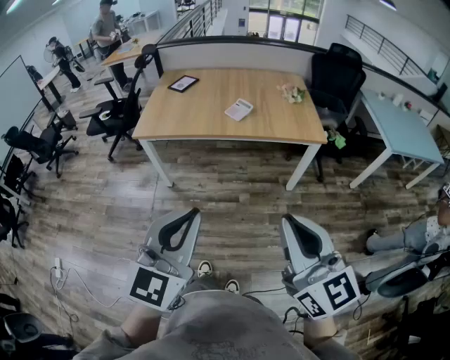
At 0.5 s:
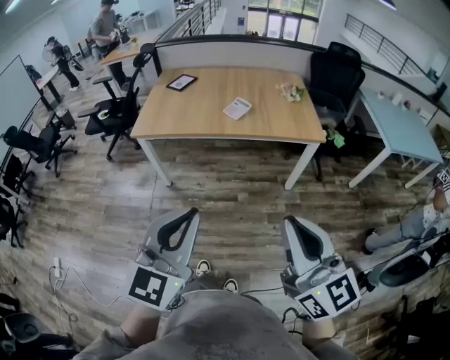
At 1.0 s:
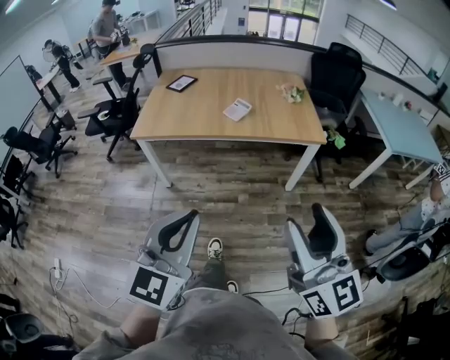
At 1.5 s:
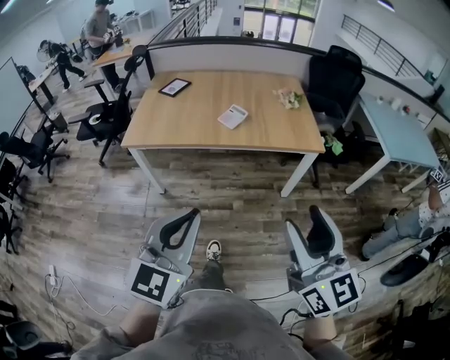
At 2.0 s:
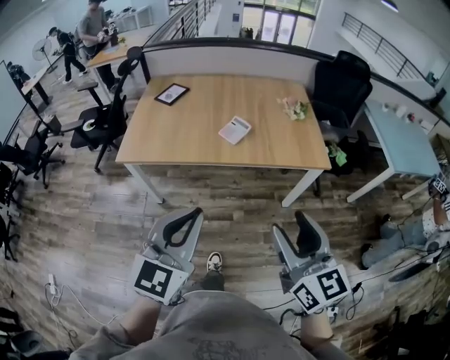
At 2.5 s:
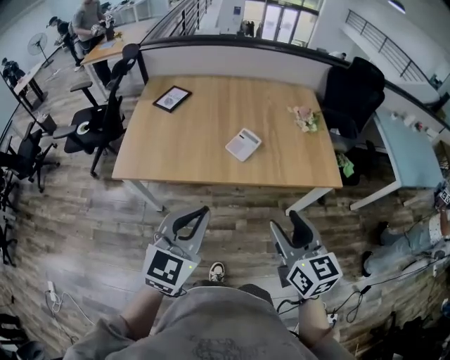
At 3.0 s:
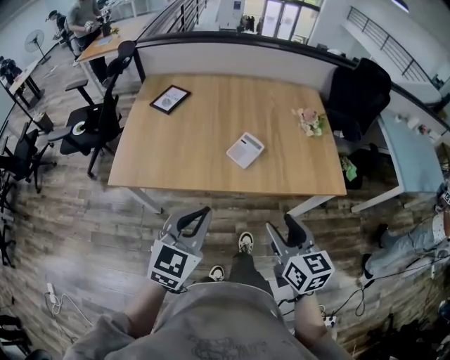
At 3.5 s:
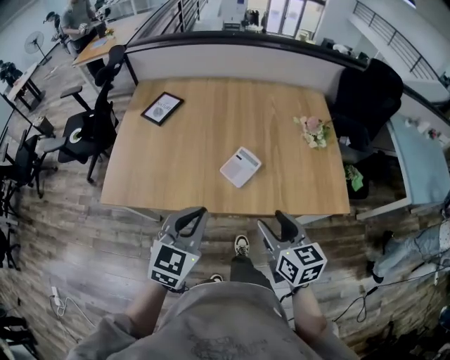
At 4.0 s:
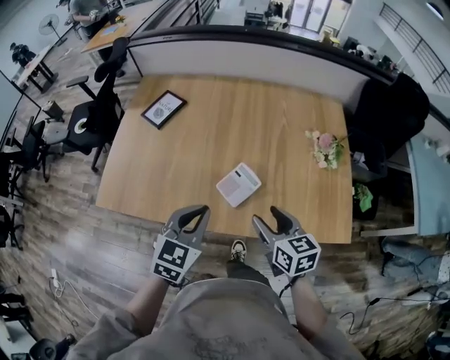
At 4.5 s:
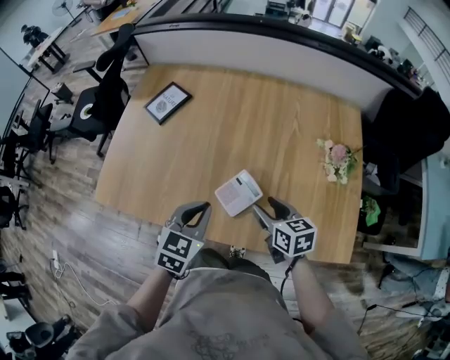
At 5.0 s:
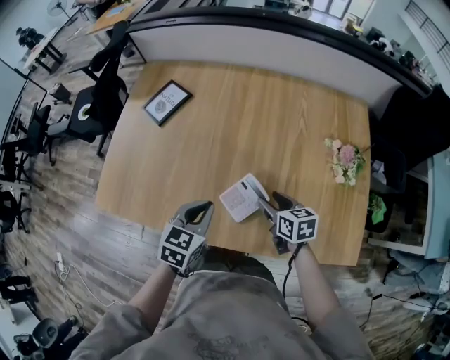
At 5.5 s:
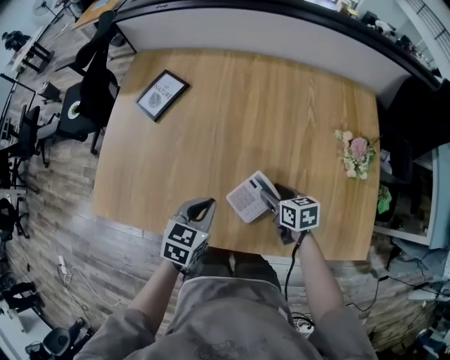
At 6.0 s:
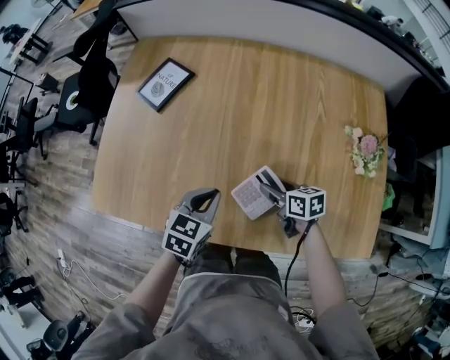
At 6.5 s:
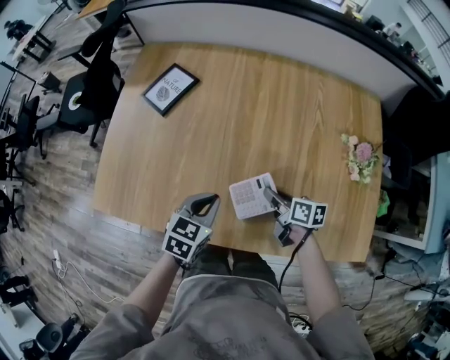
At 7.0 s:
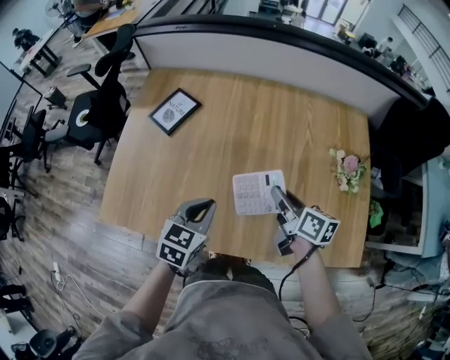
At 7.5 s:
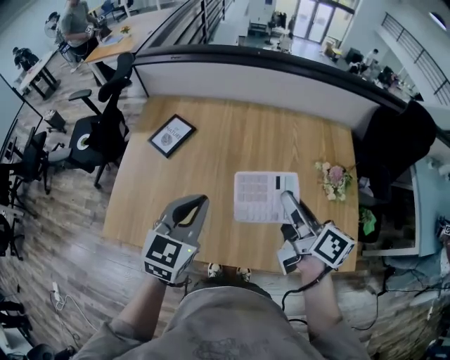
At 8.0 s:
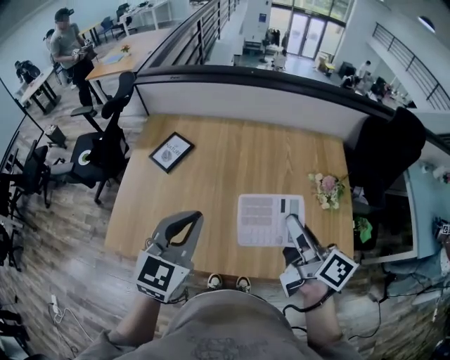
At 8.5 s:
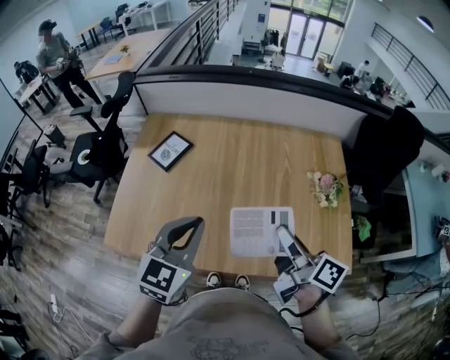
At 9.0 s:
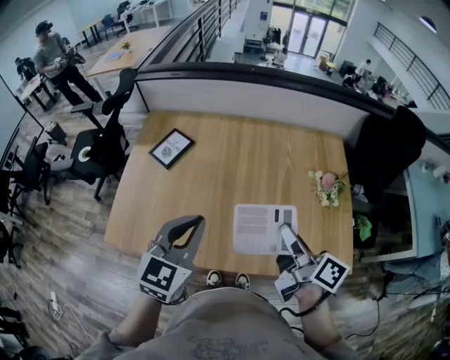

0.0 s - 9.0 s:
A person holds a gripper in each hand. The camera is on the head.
0.0 s - 2.0 s: The two grippers go roughly 20 cm forward. The right gripper opens its fingers.
2.0 s - 4.5 s: Both grippers are carried forward, about 50 cm. The grippers both shift downward by roughly 25 cm. The right gripper changes its angle by roughly 40 degrees, while the left gripper swivels roughly 30 degrees.
4.5 s - 7.0 s: The left gripper goes roughly 10 cm forward and to the left, and moves some 10 cm downward and comes back. Meanwhile the right gripper goes some 10 cm forward, goes downward and returns, some 15 cm each way, rotates about 30 degrees, and closes its fingers.
7.0 s - 9.0 s: The left gripper goes some 20 cm upward, and turns by roughly 20 degrees, while the right gripper moves upward and backward, approximately 20 cm, and changes its angle by some 20 degrees.

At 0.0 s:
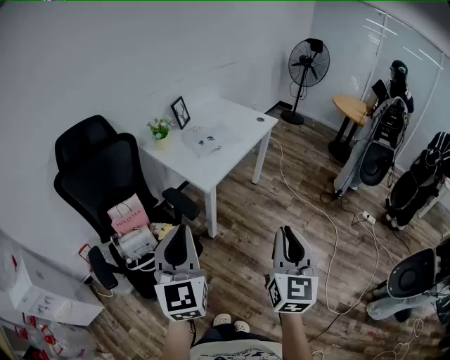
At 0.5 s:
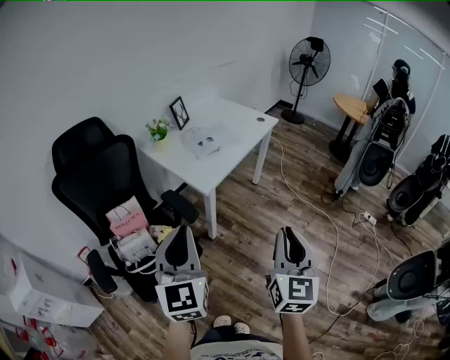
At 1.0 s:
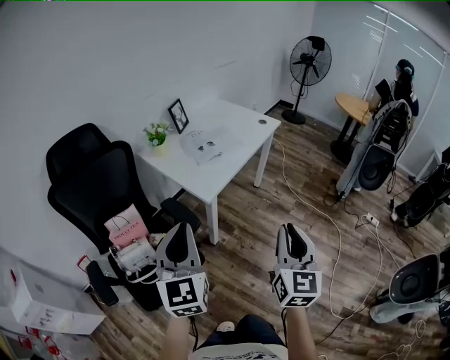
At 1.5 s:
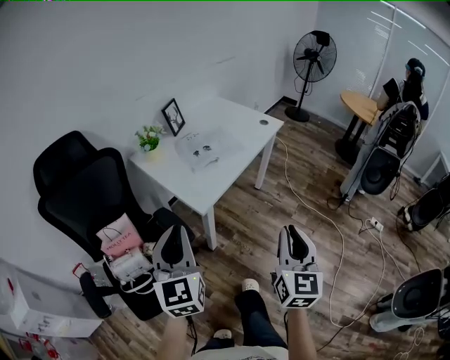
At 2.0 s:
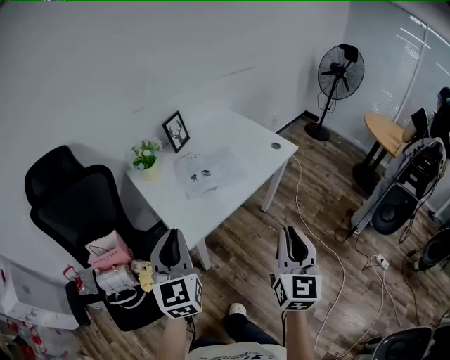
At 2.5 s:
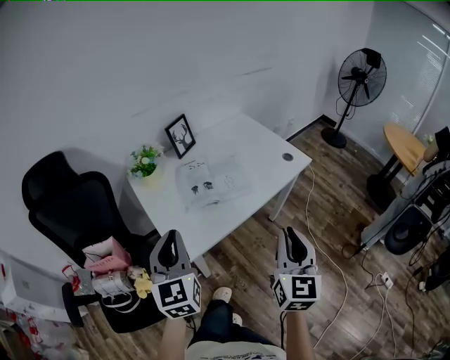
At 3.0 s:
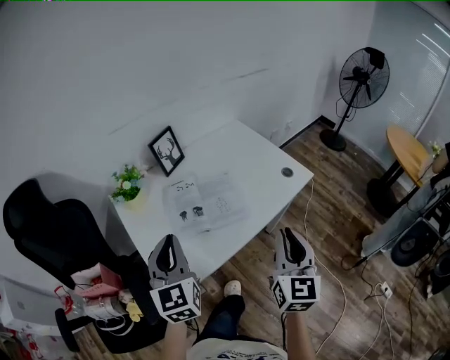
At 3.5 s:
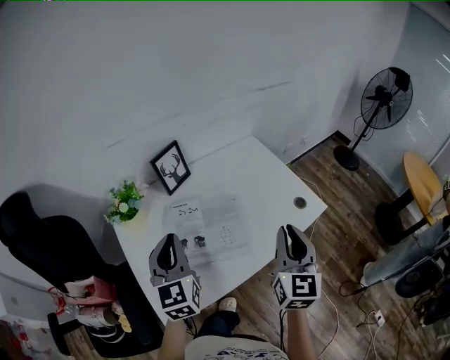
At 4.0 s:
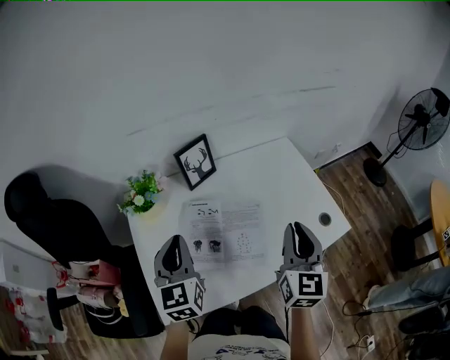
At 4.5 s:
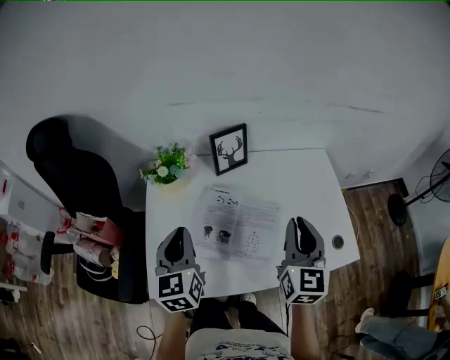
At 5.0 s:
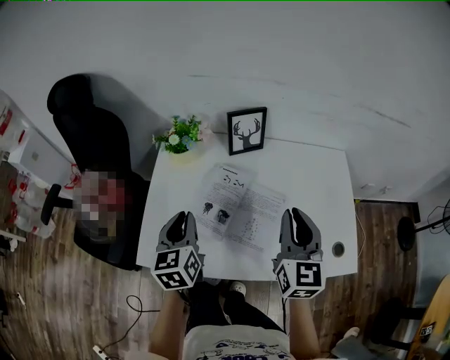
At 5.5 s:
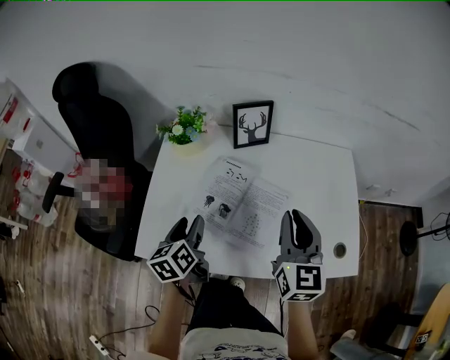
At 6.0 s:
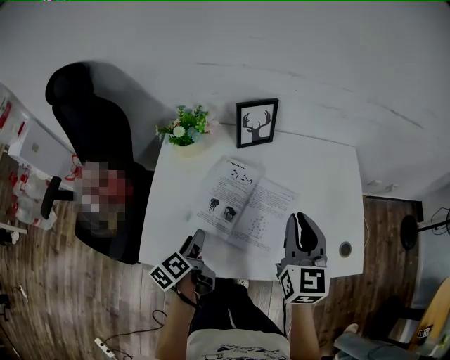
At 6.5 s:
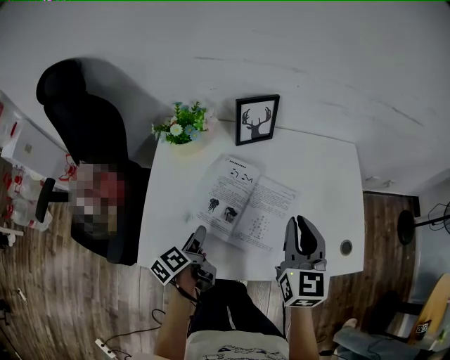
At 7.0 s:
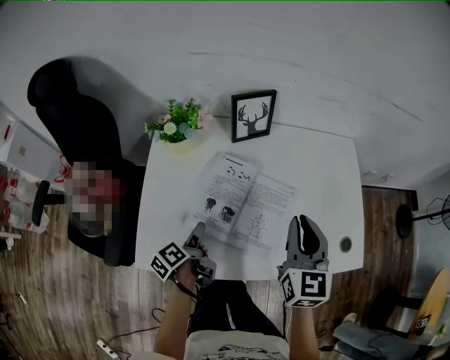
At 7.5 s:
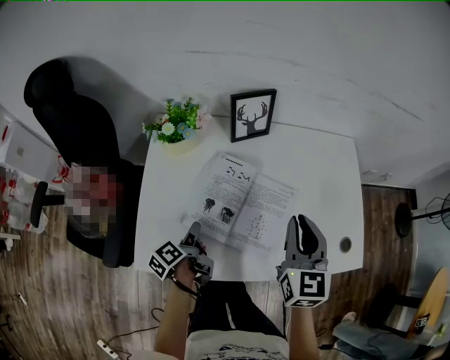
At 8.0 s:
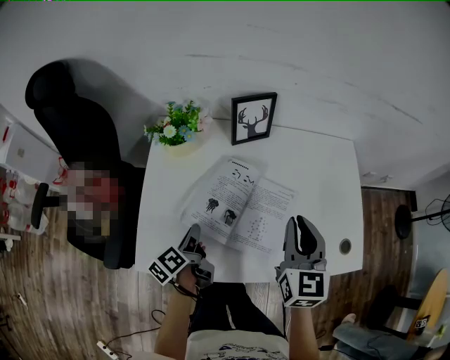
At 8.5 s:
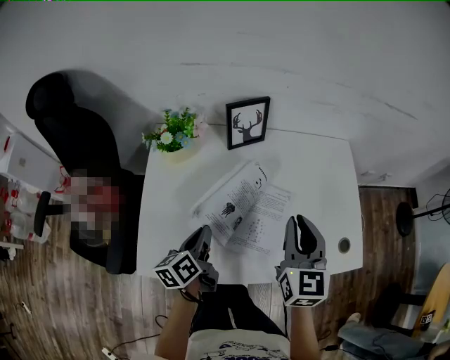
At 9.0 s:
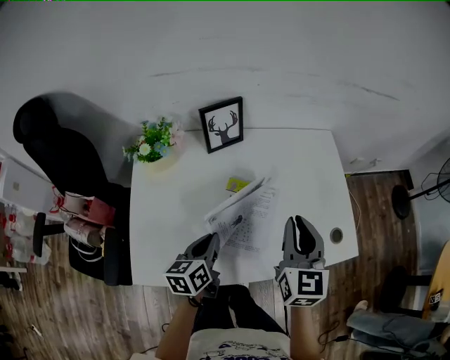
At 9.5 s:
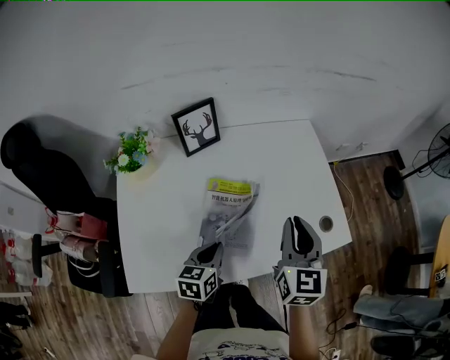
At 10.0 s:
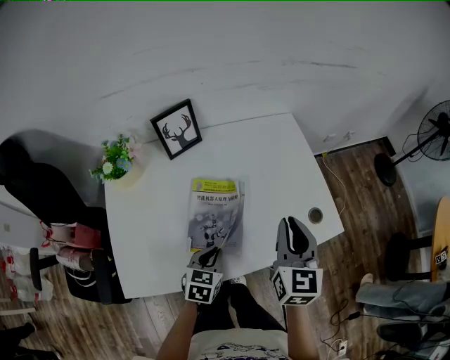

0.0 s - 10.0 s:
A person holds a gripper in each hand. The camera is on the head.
0.0 s - 2.0 s: Both grippers travel together forward, some 35 cm.
2.0 s - 4.0 s: The grippers both shift forward by about 50 cm. The right gripper swivels approximately 20 degrees. Meanwhile the left gripper rotates roughly 20 degrees.
4.0 s - 6.0 s: The right gripper travels forward and downward by some 10 cm, and turns by roughly 30 degrees; the left gripper is displaced downward and backward by some 25 cm, rotates around the line of its fingers by roughly 60 degrees, counterclockwise from behind, and opens up.
6.0 s - 8.0 s: The left gripper changes place by about 5 cm, and closes.
8.0 s - 10.0 s: The right gripper ends up approximately 15 cm from where it was. The left gripper ends up about 20 cm from where it was, and rolls clockwise, seen from behind, by some 70 degrees.

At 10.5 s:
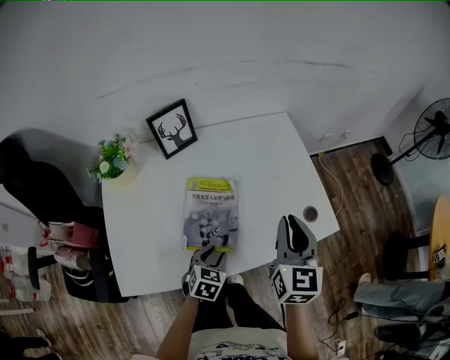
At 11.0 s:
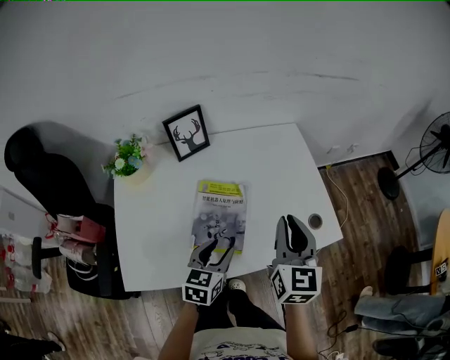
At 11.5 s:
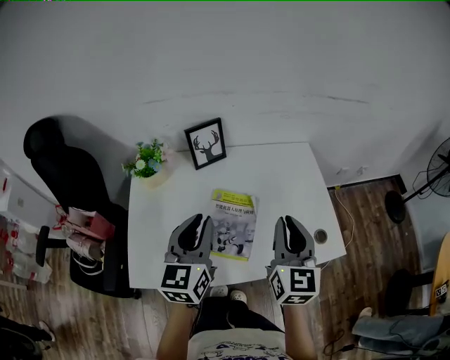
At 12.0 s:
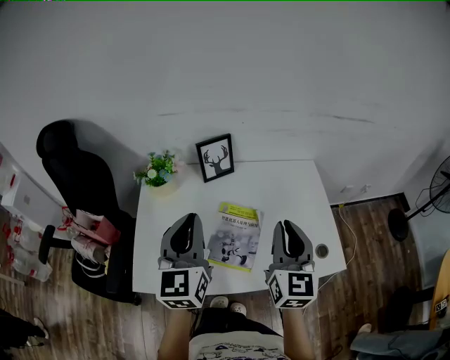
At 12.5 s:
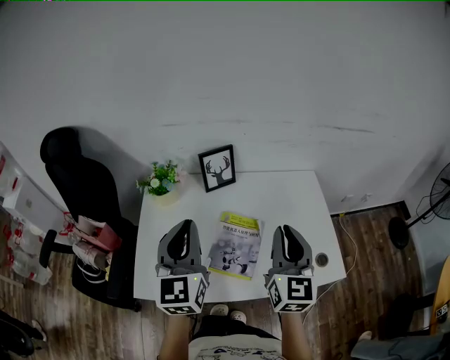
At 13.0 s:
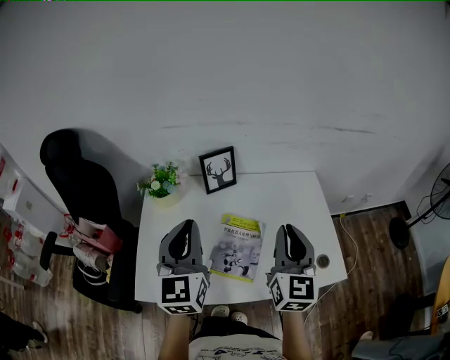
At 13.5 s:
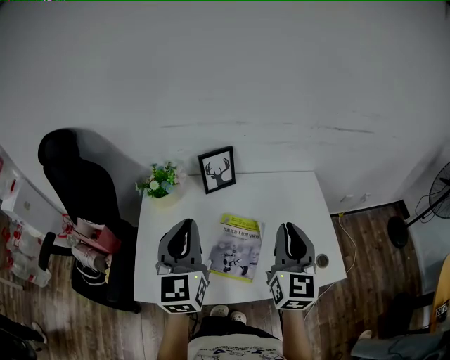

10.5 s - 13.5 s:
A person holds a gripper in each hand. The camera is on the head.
10.5 s - 12.0 s: The right gripper is displaced upward by some 10 cm. Meanwhile the left gripper travels upward by about 35 cm, angles its fingers upward, by some 50 degrees, and closes its fingers.
12.0 s - 13.5 s: The grippers move only a little.

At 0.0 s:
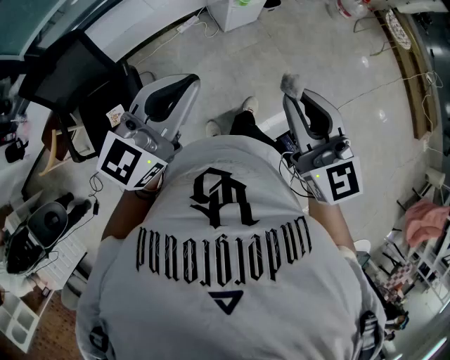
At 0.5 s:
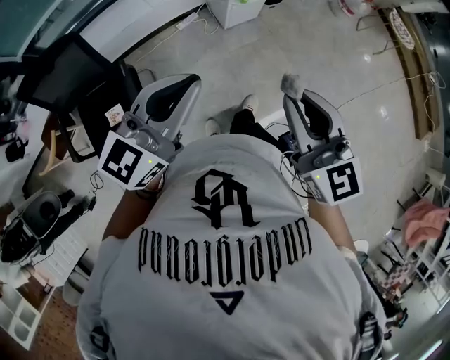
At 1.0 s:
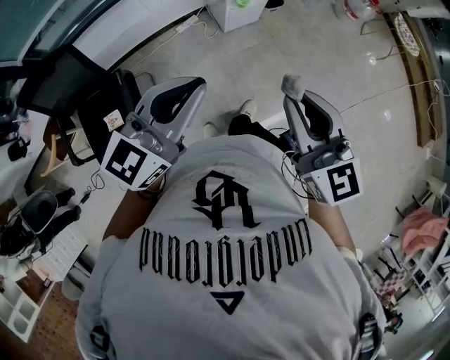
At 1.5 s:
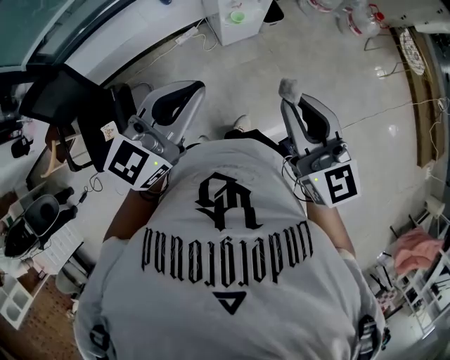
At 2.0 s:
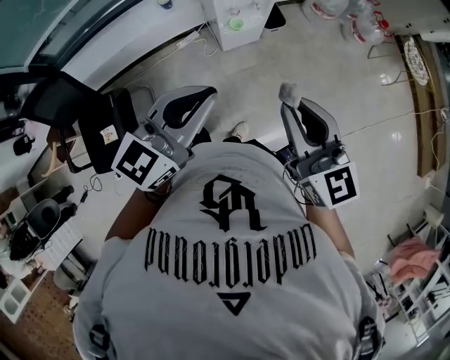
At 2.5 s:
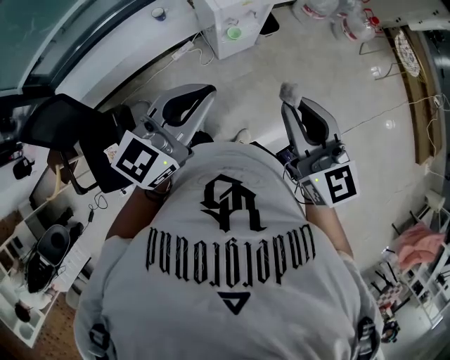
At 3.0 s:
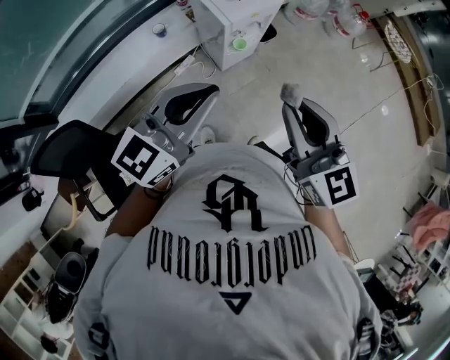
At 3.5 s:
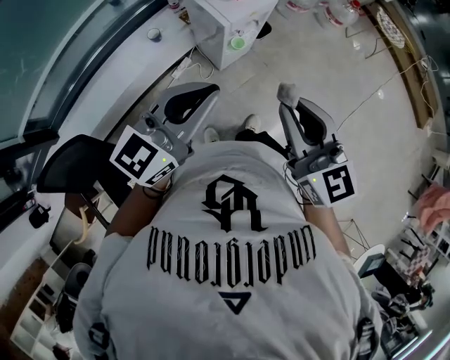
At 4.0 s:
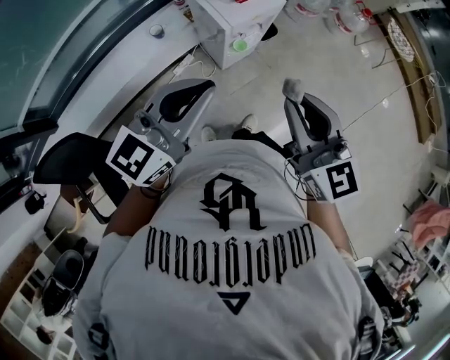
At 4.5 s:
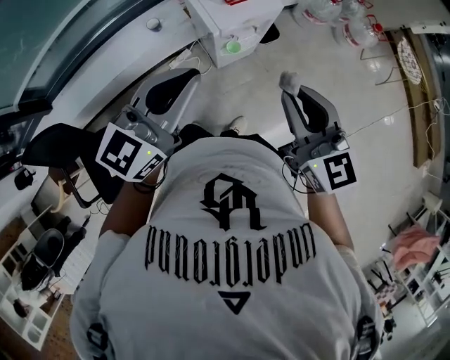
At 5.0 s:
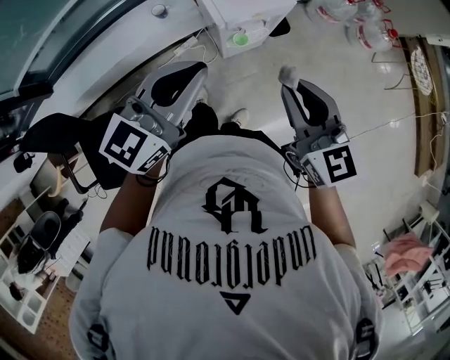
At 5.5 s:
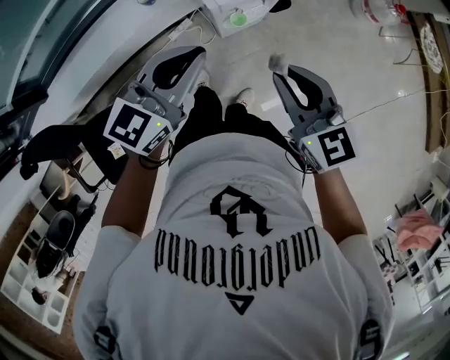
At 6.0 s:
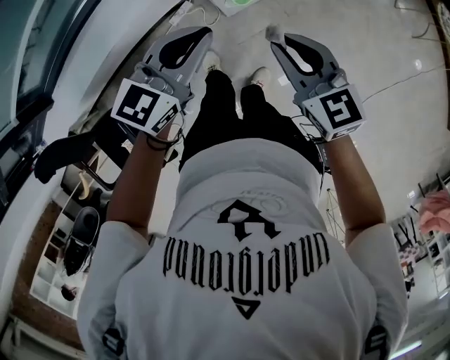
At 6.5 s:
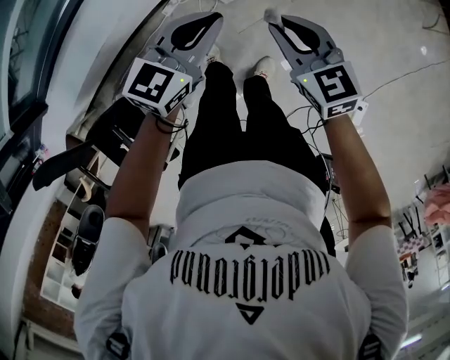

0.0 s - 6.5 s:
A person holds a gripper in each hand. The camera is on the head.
0.0 s - 2.0 s: The grippers both shift forward and to the right by about 30 cm.
2.0 s - 4.5 s: Both grippers travel together forward and to the left, approximately 20 cm.
4.5 s - 6.5 s: The left gripper is displaced downward and forward by about 35 cm, and changes its angle by roughly 20 degrees. The right gripper moves downward, some 30 cm.
